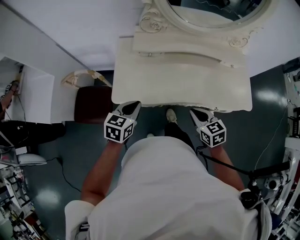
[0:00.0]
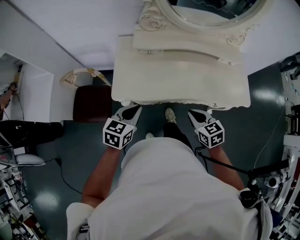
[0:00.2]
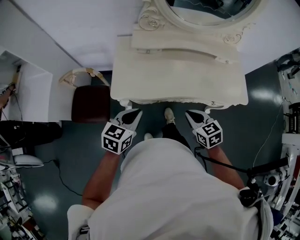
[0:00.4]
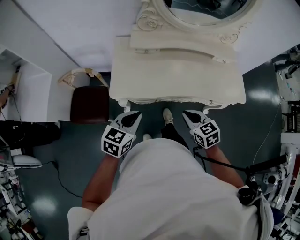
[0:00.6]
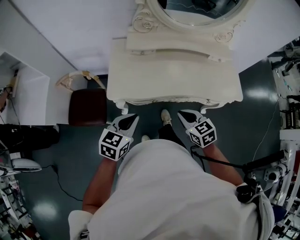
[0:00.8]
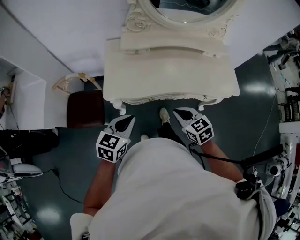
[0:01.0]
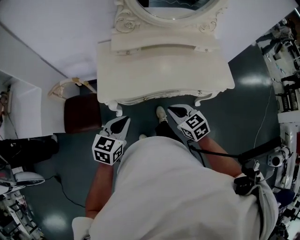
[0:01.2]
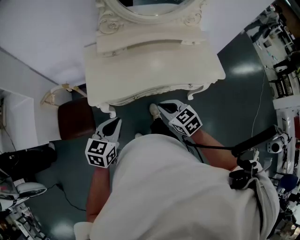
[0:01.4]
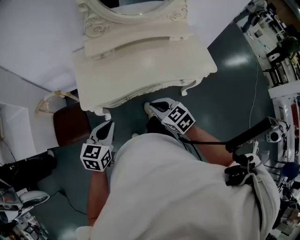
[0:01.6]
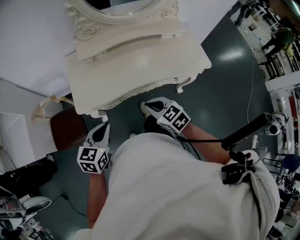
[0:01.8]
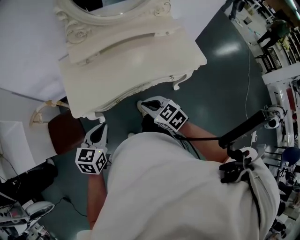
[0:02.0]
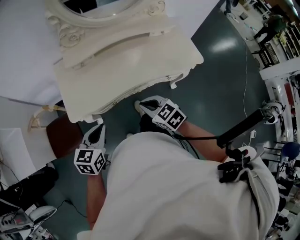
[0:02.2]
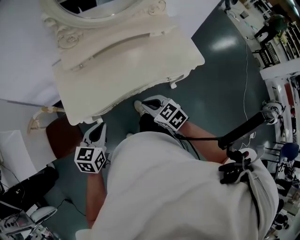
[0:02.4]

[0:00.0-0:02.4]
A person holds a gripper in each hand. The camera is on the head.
0:00.0 to 0:01.2: The left gripper shifts roughly 15 cm backward; the right gripper shifts approximately 10 cm backward and to the left.
0:01.2 to 0:02.4: Both grippers travel together to the right, approximately 5 cm.

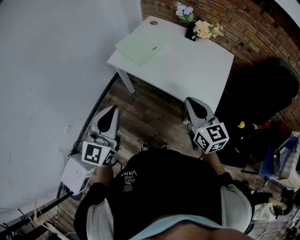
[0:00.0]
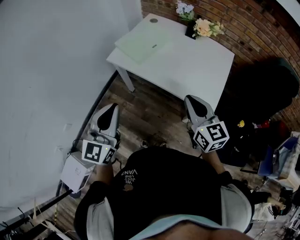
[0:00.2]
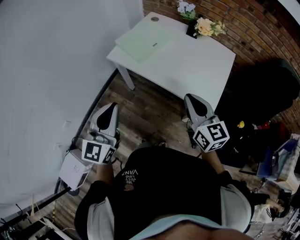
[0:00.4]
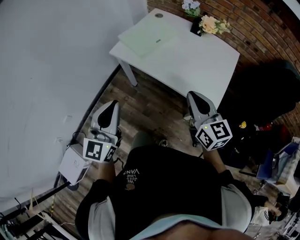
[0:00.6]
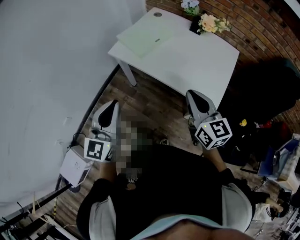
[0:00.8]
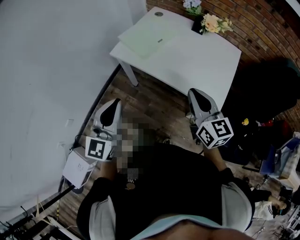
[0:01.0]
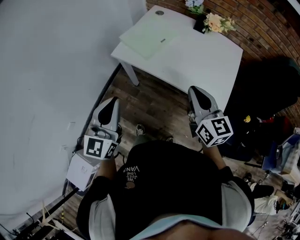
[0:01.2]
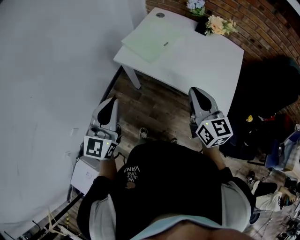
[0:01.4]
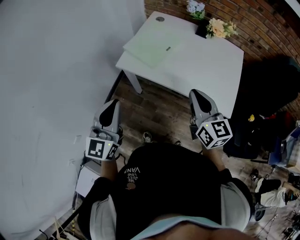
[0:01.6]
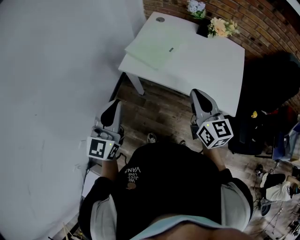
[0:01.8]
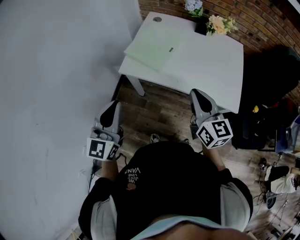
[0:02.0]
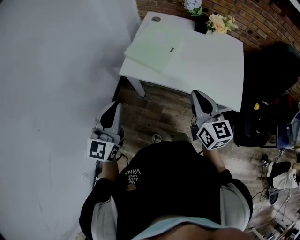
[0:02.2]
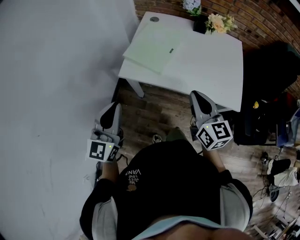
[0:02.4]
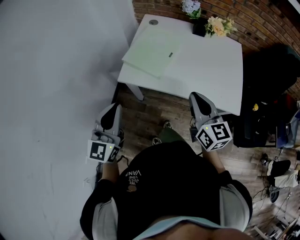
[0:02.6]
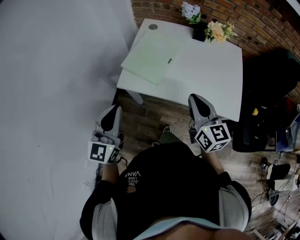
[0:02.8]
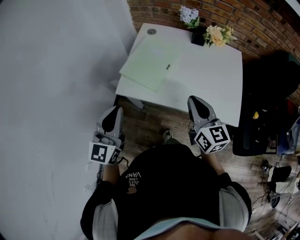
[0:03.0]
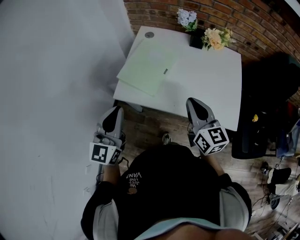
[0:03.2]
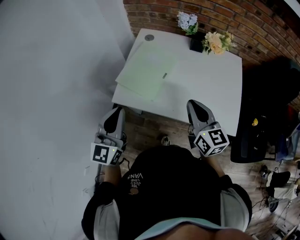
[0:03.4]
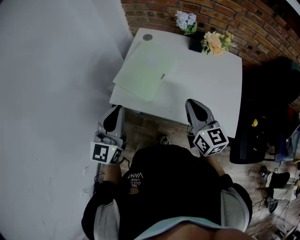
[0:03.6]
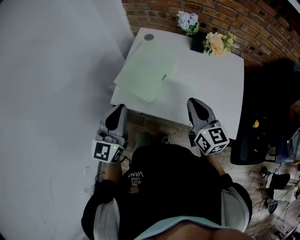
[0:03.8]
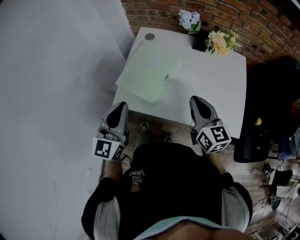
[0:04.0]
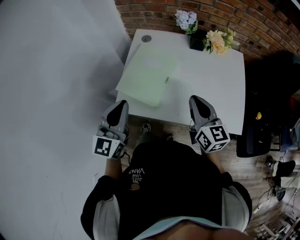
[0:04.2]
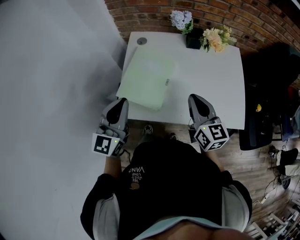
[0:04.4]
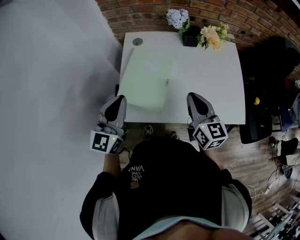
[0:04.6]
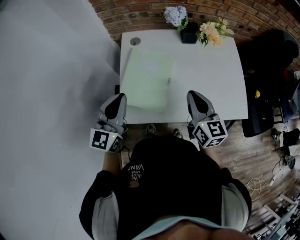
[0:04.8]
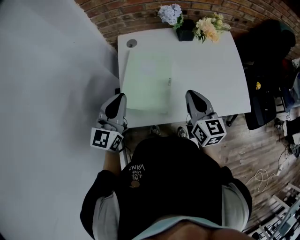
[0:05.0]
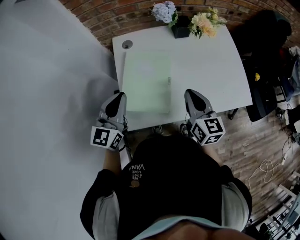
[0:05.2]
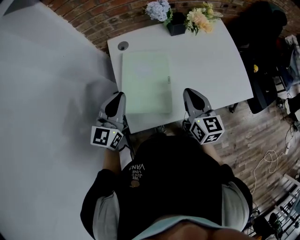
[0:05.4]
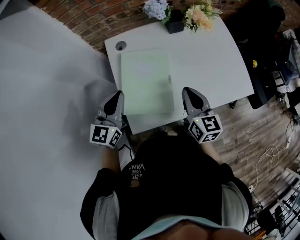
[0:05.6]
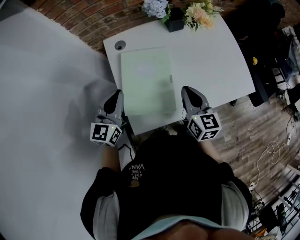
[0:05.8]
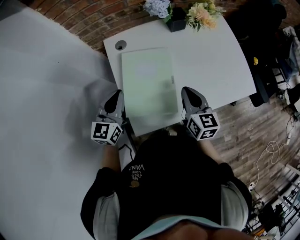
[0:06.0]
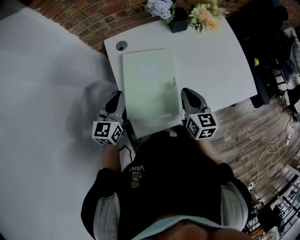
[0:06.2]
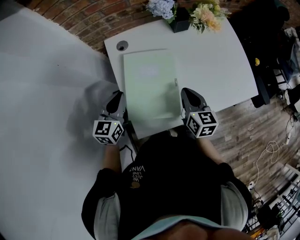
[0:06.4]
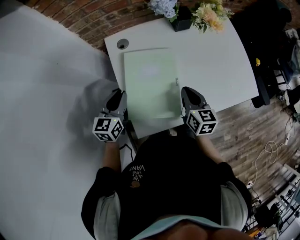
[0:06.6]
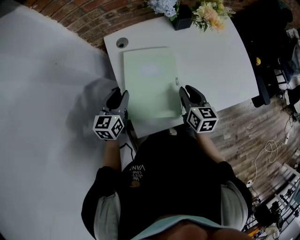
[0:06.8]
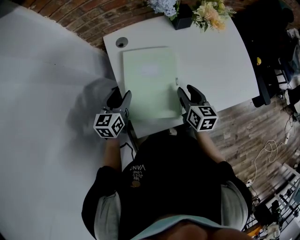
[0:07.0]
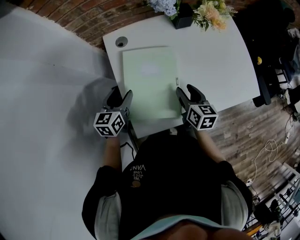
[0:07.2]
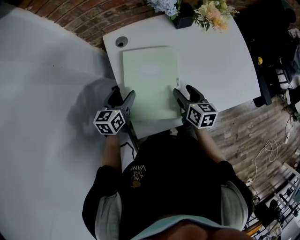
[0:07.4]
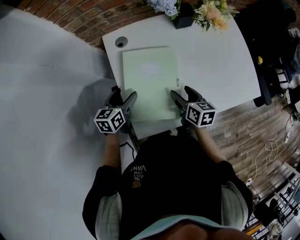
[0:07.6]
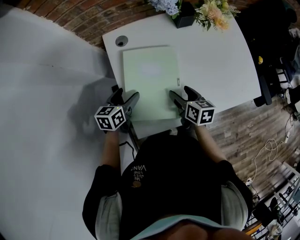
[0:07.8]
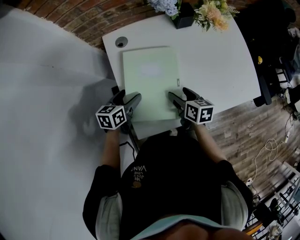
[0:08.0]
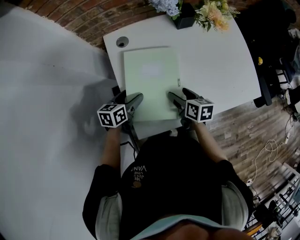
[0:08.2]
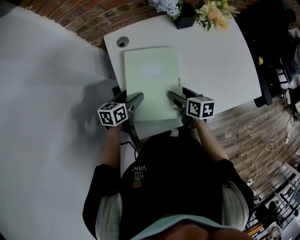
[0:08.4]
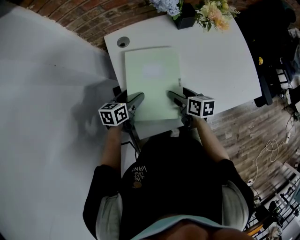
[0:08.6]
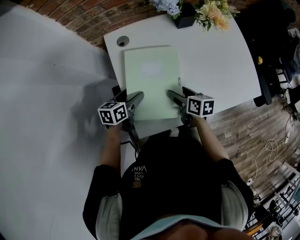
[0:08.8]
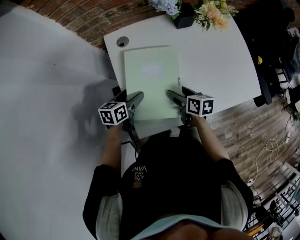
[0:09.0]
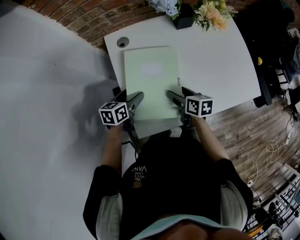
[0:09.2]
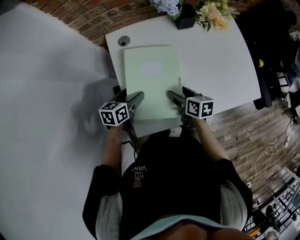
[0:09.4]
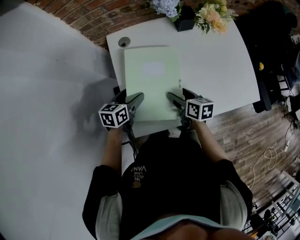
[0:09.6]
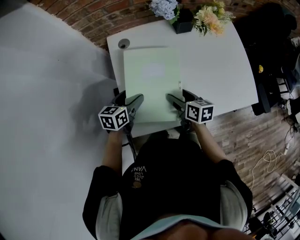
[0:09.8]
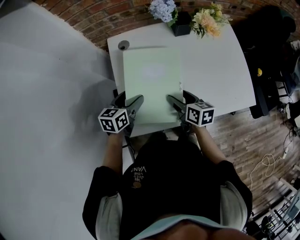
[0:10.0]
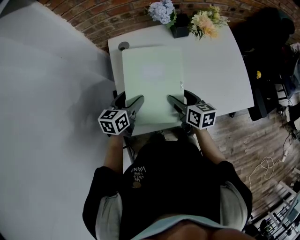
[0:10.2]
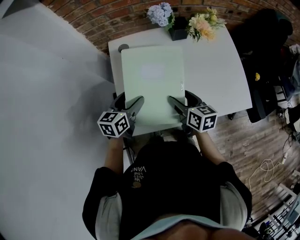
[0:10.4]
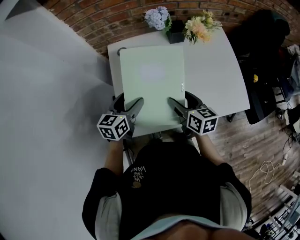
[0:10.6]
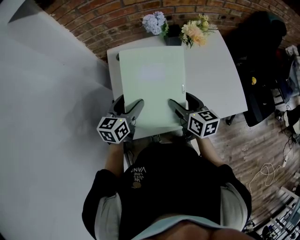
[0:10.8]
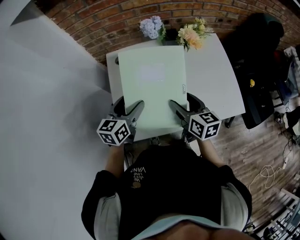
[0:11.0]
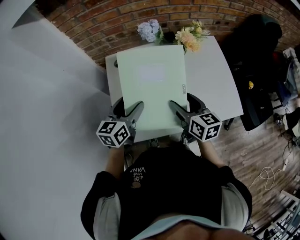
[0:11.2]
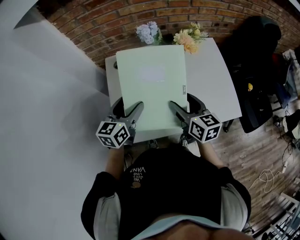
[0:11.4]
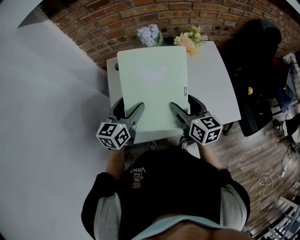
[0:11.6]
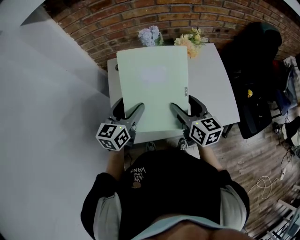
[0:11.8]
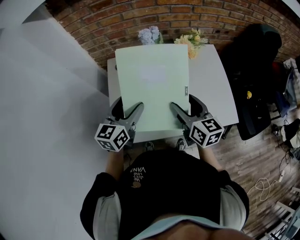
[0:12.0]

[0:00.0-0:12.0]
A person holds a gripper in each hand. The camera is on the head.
0:00.0 to 0:01.6: Both grippers travel together to the left and forward, about 15 cm.
0:01.6 to 0:03.0: The grippers both shift forward by approximately 10 cm.
0:03.0 to 0:04.4: The right gripper moves forward, about 10 cm, while the left gripper goes approximately 15 cm forward.
0:04.4 to 0:06.0: The right gripper heads downward and to the left, covering about 10 cm, and rotates roughly 30 degrees; the left gripper heads forward, downward and to the left, covering some 20 cm, and rotates about 20 degrees.
0:06.0 to 0:07.6: The two grippers go some 10 cm downward. The left gripper rotates some 30 degrees, and opens. The right gripper turns by approximately 20 degrees, and opens up.
0:07.6 to 0:09.0: The grippers move only a little.
0:09.0 to 0:10.4: The grippers both shift upward and to the right by some 10 cm.
0:10.4 to 0:12.0: Both grippers move upward and to the right, roughly 15 cm.

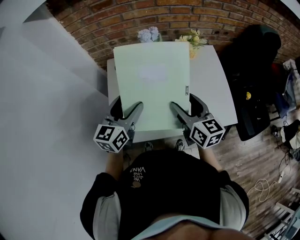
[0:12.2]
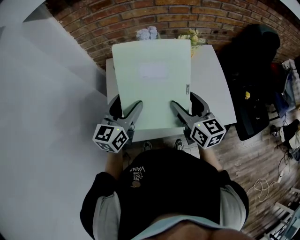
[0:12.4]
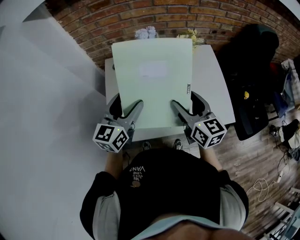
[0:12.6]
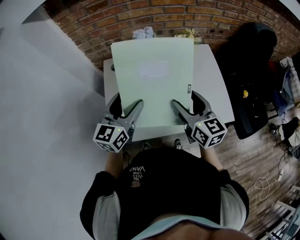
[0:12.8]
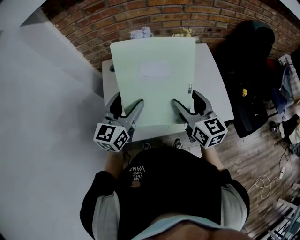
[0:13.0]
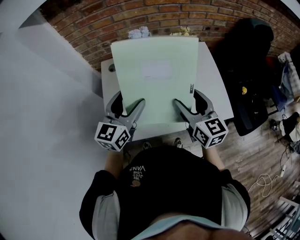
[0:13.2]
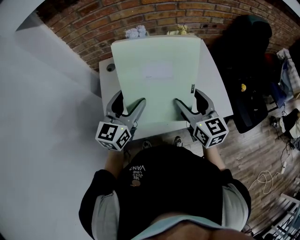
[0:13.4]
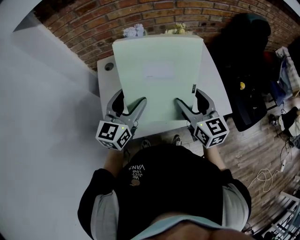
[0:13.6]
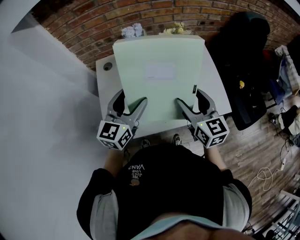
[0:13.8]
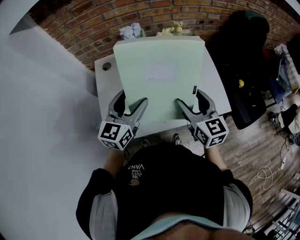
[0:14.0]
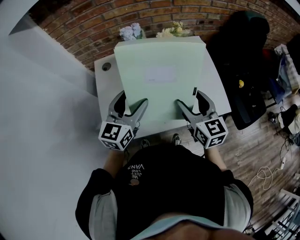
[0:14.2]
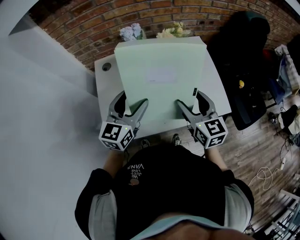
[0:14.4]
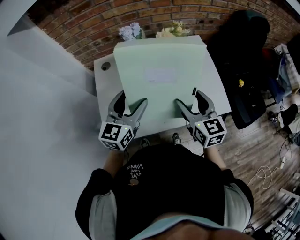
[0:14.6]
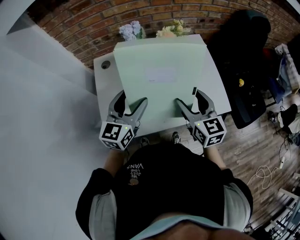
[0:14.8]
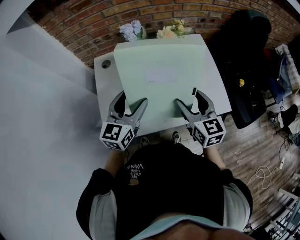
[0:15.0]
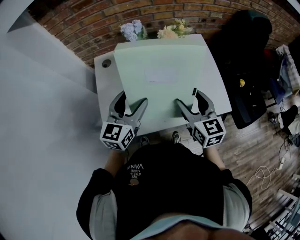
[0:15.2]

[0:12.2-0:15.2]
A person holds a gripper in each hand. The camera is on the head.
0:12.2 to 0:13.8: The grippers both shift to the right by some 5 cm.
0:13.8 to 0:15.2: The grippers move only a little.

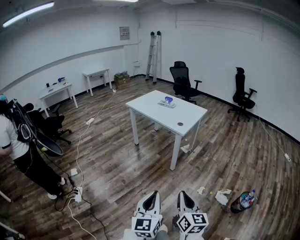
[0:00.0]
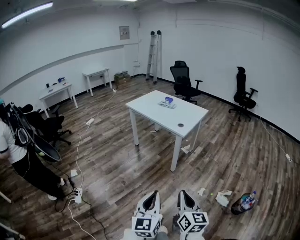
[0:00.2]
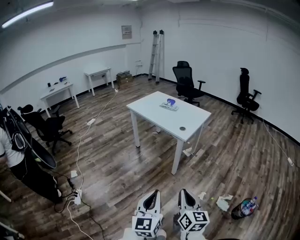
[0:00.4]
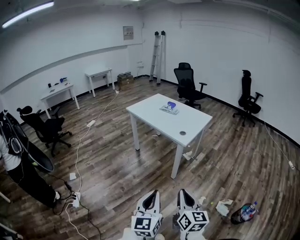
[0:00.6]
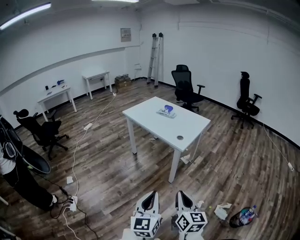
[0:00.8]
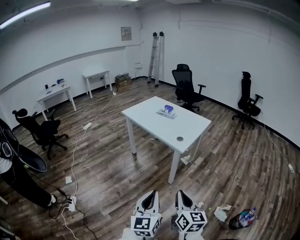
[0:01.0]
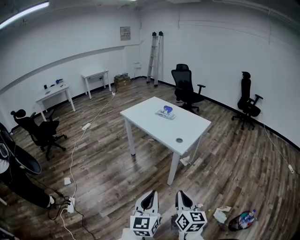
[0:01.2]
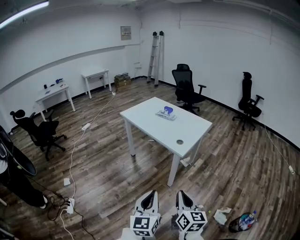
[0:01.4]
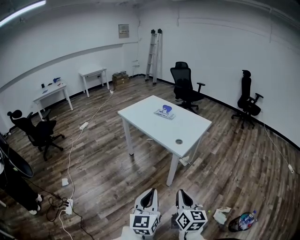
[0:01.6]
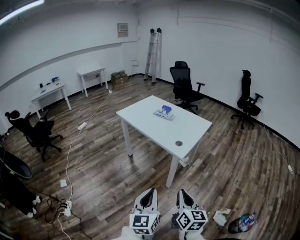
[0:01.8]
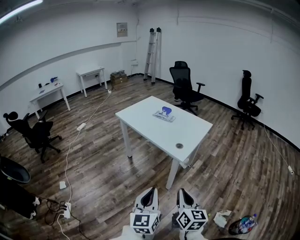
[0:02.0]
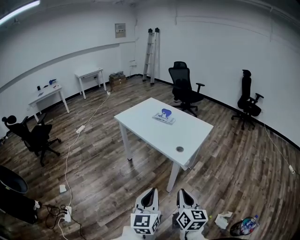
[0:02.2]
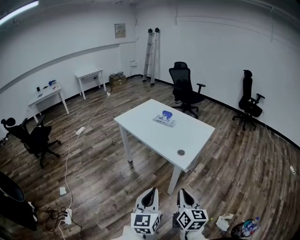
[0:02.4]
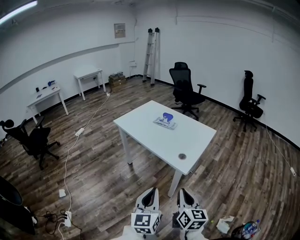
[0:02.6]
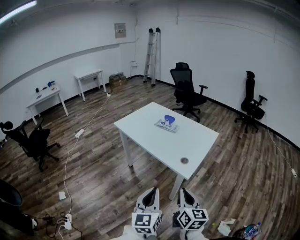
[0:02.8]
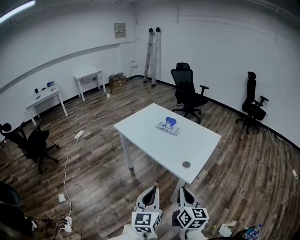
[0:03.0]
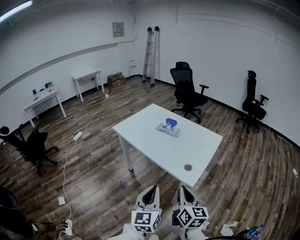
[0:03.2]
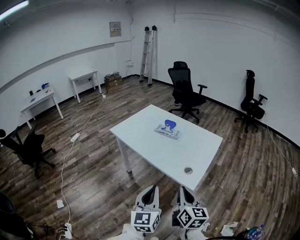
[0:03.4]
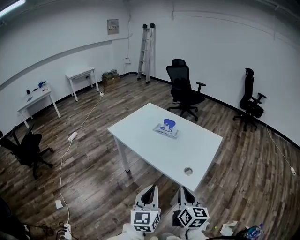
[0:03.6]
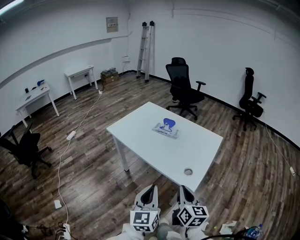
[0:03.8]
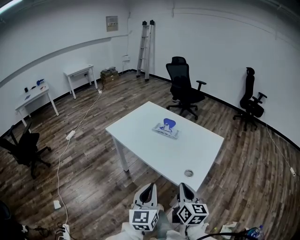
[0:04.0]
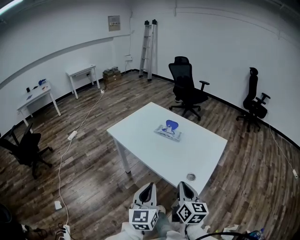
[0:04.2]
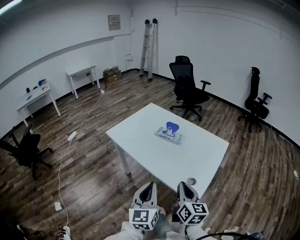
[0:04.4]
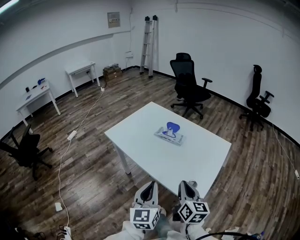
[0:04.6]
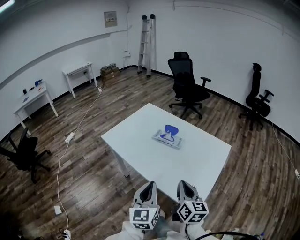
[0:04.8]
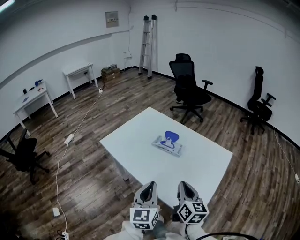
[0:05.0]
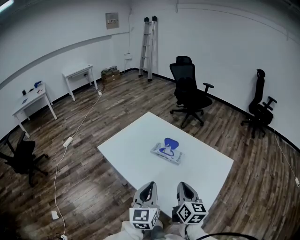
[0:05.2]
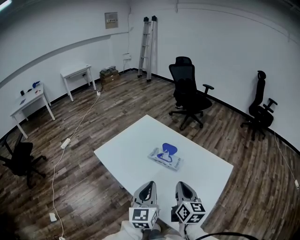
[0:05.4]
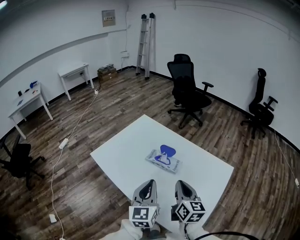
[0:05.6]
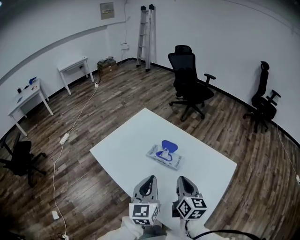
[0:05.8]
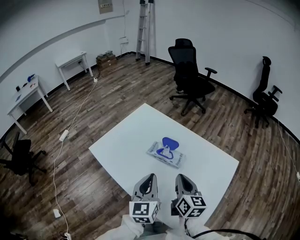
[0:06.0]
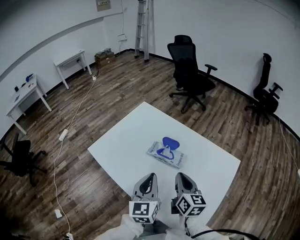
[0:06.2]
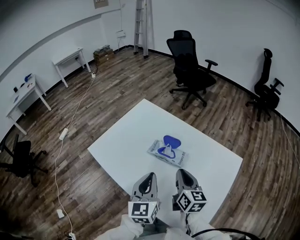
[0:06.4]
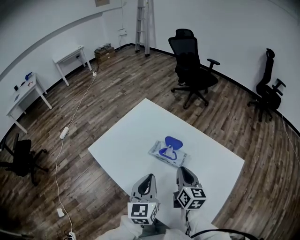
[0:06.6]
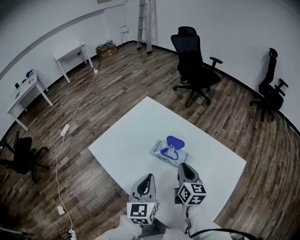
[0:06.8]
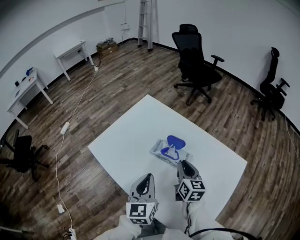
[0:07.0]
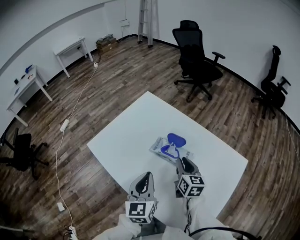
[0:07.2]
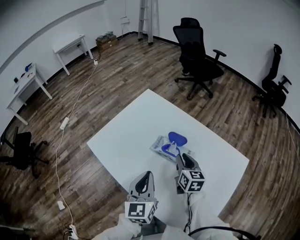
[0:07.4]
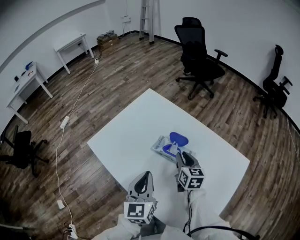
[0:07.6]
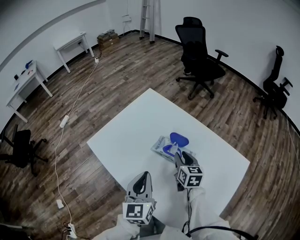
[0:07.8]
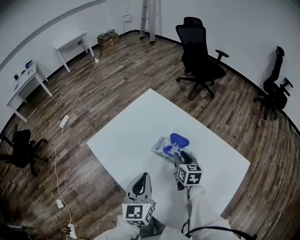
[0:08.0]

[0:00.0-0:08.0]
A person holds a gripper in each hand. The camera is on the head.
0:00.0 to 0:01.6: Both grippers travel together forward, about 25 cm.
0:01.6 to 0:03.2: The grippers both shift forward by roughly 25 cm.
0:03.2 to 0:04.8: The grippers both shift forward by approximately 20 cm.
0:04.8 to 0:06.4: Both grippers travel together forward, approximately 25 cm.
0:06.4 to 0:08.0: The left gripper moves roughly 5 cm. The right gripper travels forward and downward by some 15 cm, and opens up.
